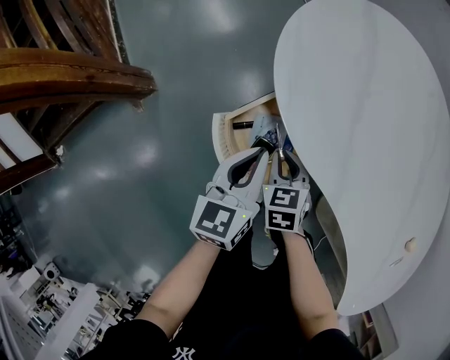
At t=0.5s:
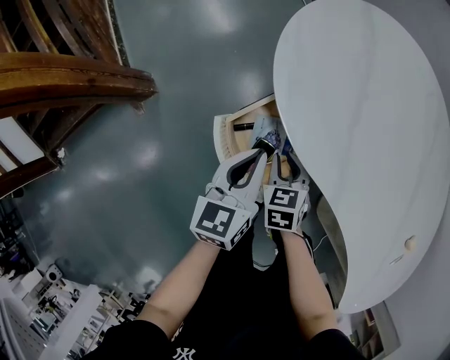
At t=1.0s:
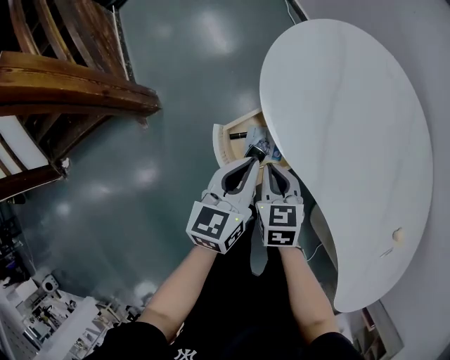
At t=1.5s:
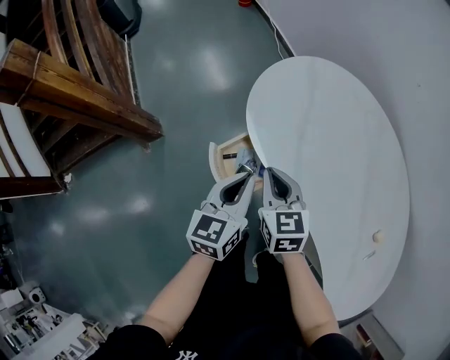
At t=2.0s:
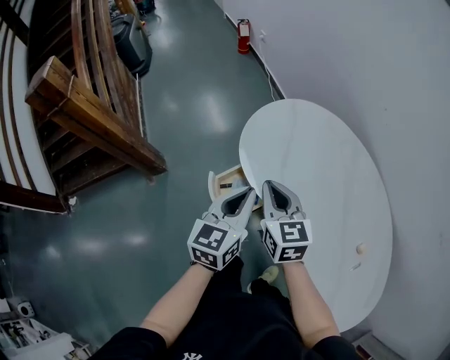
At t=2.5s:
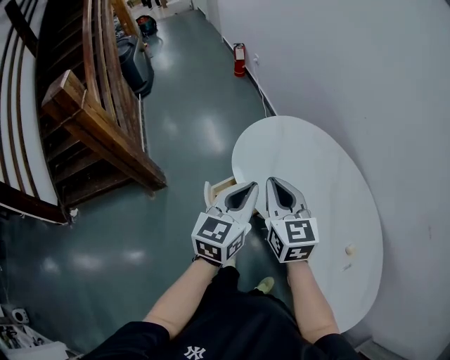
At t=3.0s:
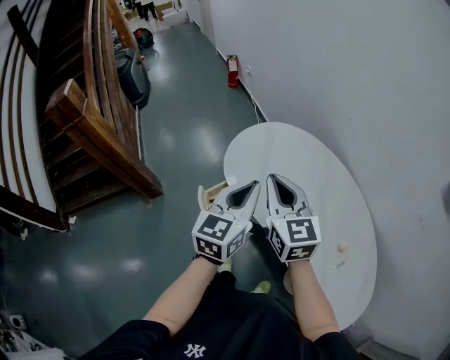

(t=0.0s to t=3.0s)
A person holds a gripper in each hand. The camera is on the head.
t=0.0s - t=1.5s: The left gripper goes some 15 cm upward. Meanwhile the right gripper shifts roughly 25 cm upward, and swivels some 20 degrees.
t=1.5s - t=3.0s: Both grippers move upward and to the right, roughly 25 cm. The right gripper rotates about 20 degrees.

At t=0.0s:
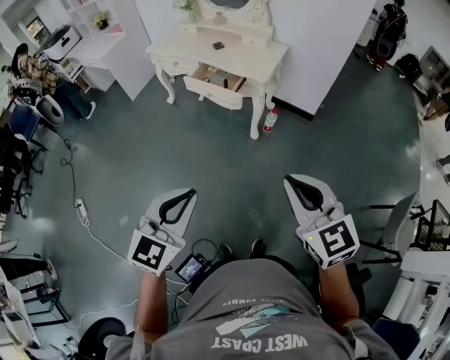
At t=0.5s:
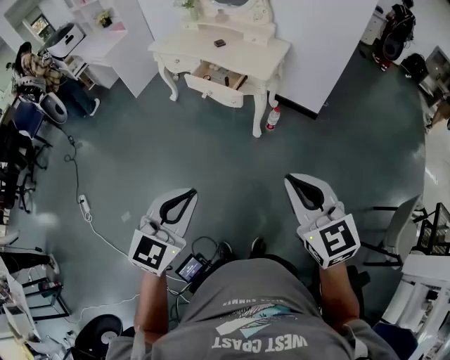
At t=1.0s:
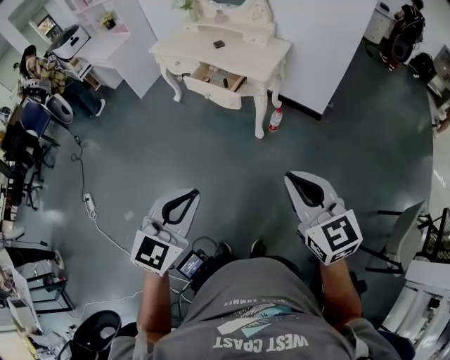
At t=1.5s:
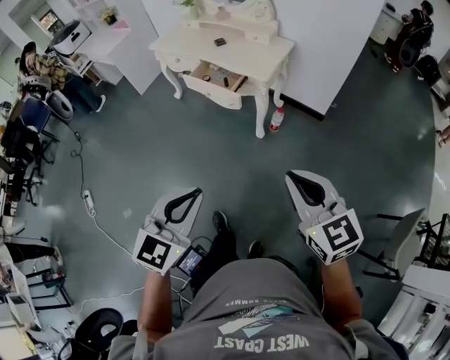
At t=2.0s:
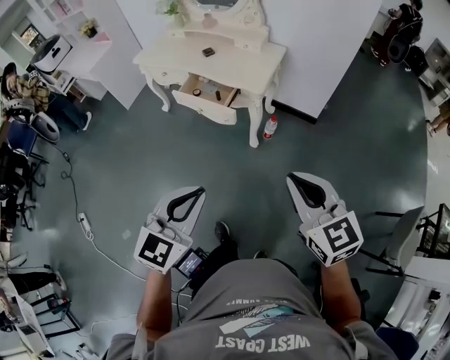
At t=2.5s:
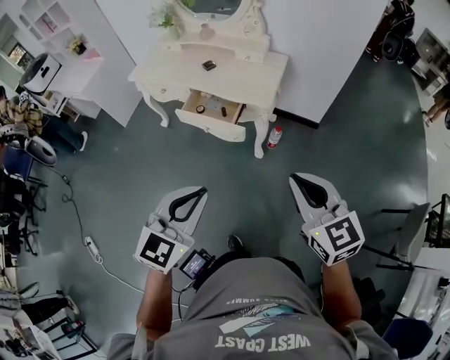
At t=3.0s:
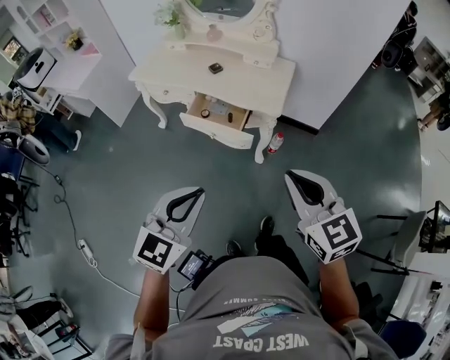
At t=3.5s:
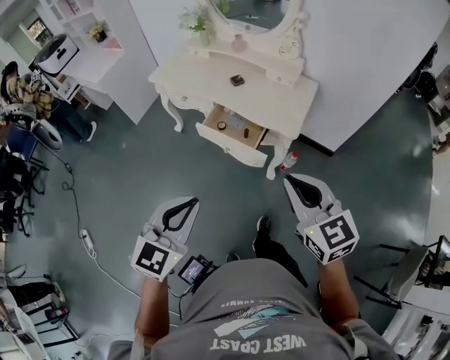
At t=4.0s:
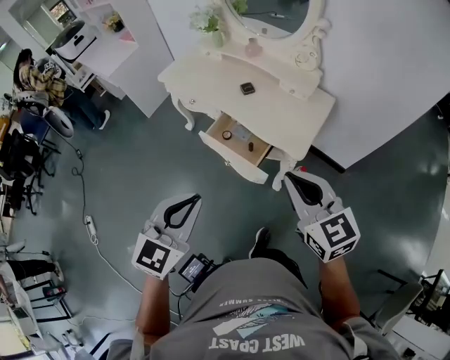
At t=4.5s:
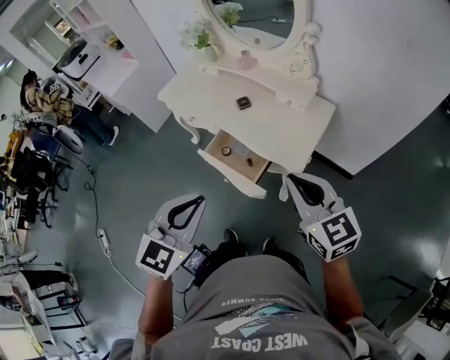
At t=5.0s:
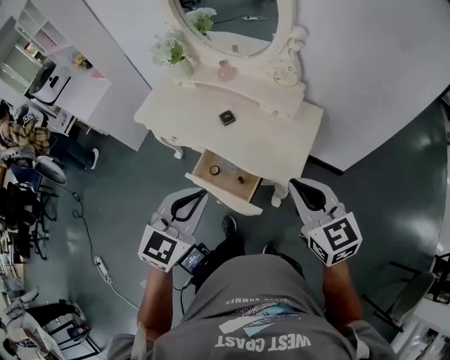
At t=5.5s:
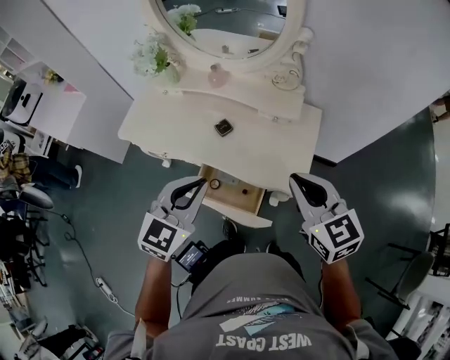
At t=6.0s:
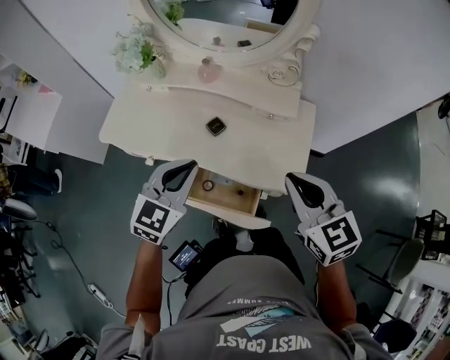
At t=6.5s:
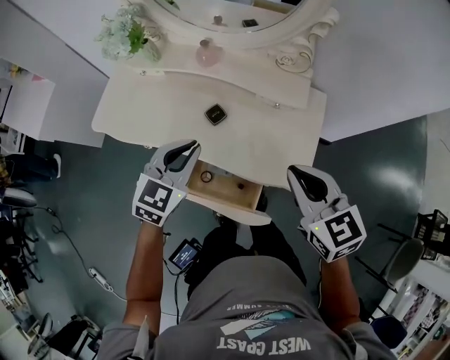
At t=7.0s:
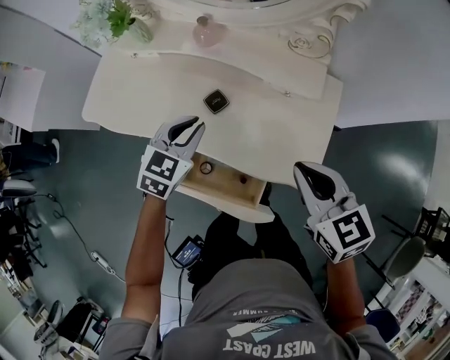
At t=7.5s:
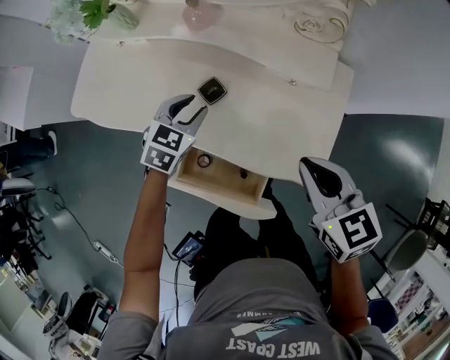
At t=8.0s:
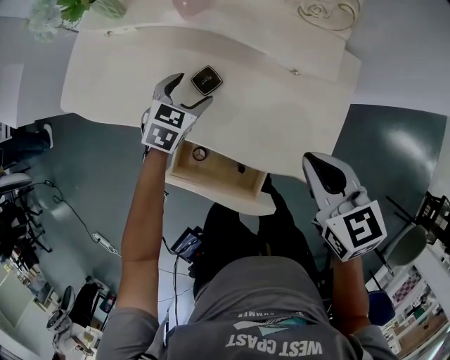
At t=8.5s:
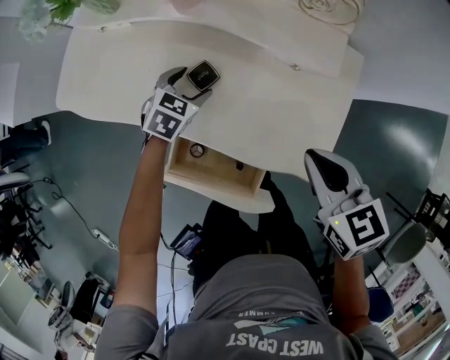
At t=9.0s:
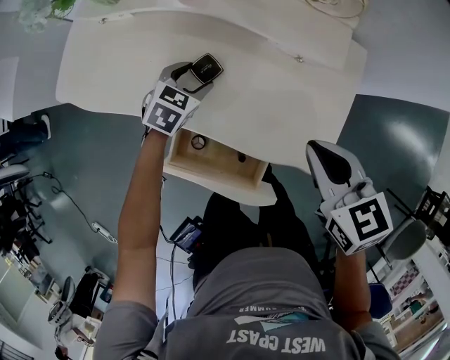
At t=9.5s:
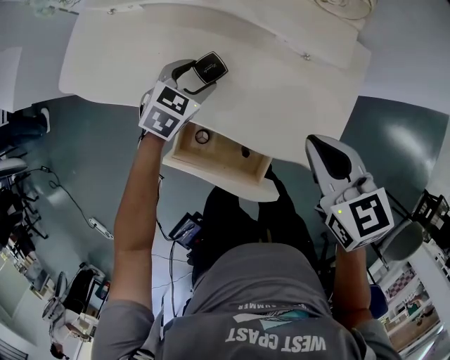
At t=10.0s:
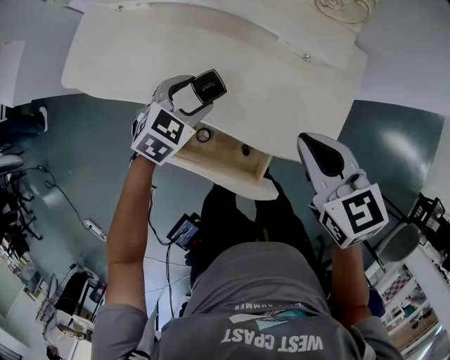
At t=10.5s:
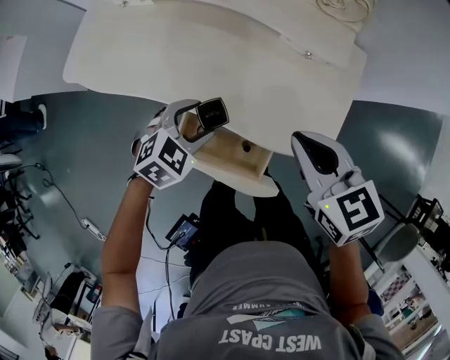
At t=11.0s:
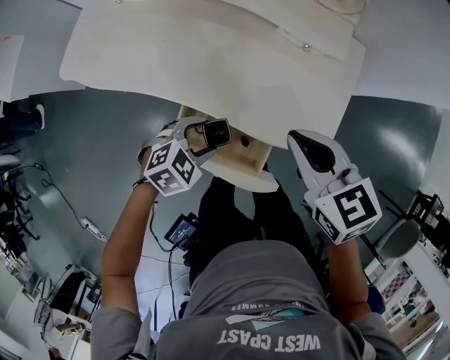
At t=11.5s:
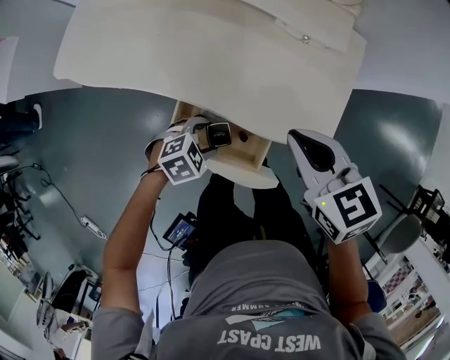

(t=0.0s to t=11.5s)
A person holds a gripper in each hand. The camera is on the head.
t=0.0s - t=2.0s: The right gripper travels forward by some 15 cm. The left gripper travels forward and to the right by some 20 cm.
t=2.0s - t=4.0s: Both grippers travel together forward, some 35 cm.
t=4.0s - t=6.0s: The right gripper is displaced forward by about 30 cm, and turns by roughly 20 degrees, while the left gripper shifts roughly 40 cm forward, and turns by roughly 20 degrees.
t=6.0s - t=7.5s: The left gripper is displaced downward and forward by approximately 30 cm, changes its angle by some 20 degrees, and opens its fingers; the right gripper travels downward and forward by roughly 20 cm.
t=7.5s - t=9.5s: The left gripper moves downward, approximately 5 cm, and opens its fingers.
t=9.5s - t=11.5s: The left gripper ends up about 25 cm from where it was, and rotates approximately 30 degrees. The right gripper moves about 5 cm.

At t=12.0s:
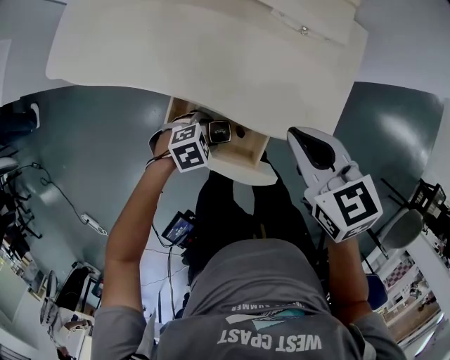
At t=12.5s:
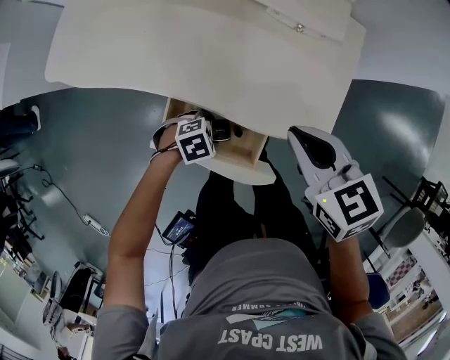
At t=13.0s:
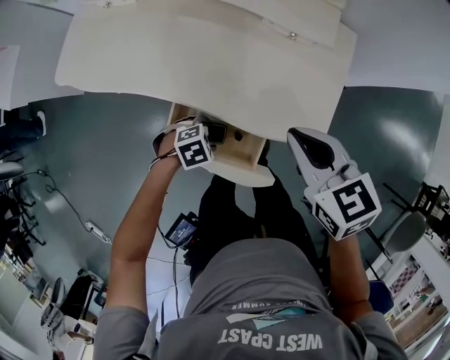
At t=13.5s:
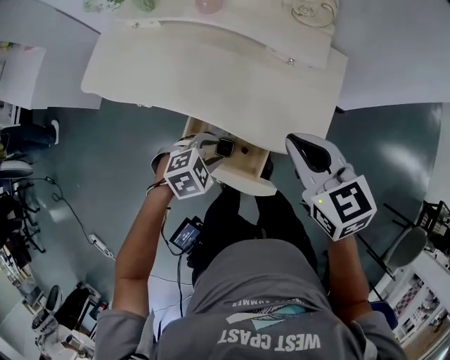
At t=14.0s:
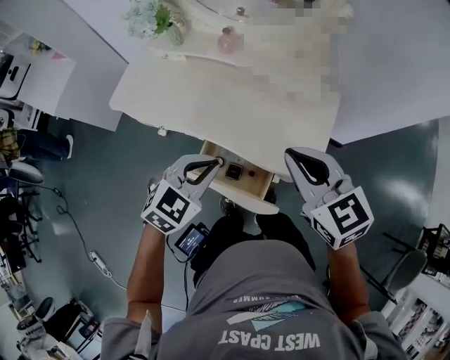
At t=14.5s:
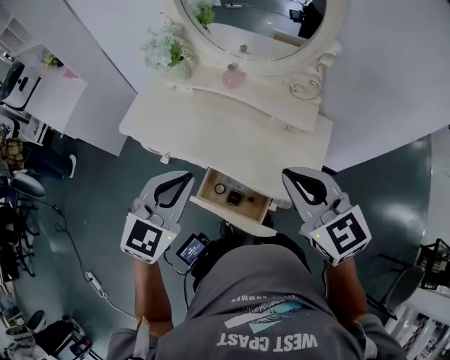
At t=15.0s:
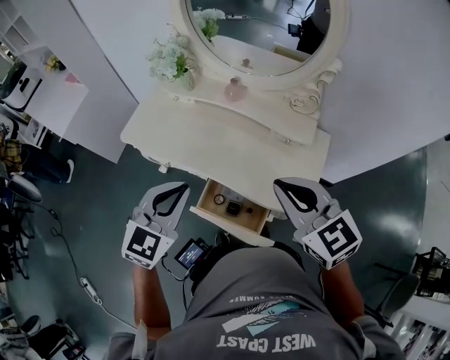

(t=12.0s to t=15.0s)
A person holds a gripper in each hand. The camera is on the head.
t=12.0s - t=13.5s: The grippers both shift upward by some 15 cm.
t=13.5s - t=15.0s: The left gripper is displaced upward by about 30 cm, tips its fingers upward by some 40 degrees, and closes its fingers; the right gripper is displaced upward and to the left by roughly 20 cm.

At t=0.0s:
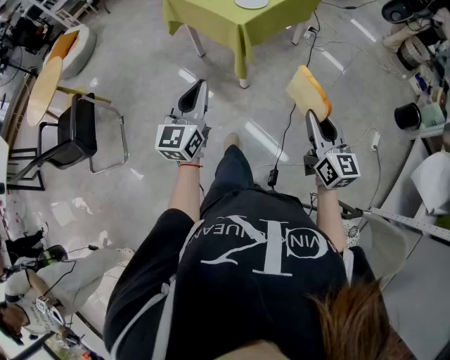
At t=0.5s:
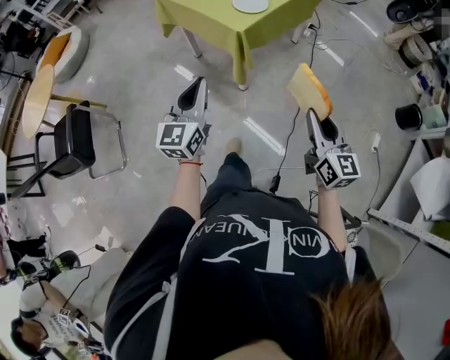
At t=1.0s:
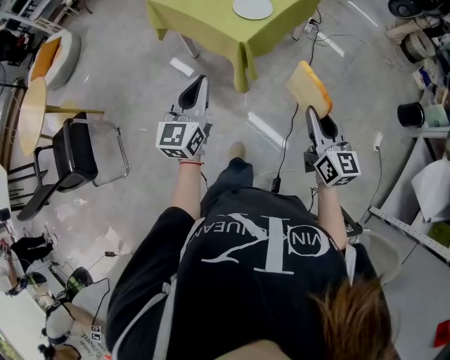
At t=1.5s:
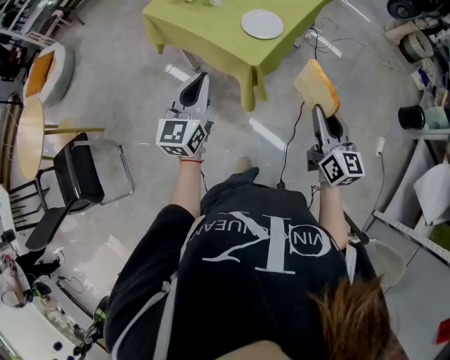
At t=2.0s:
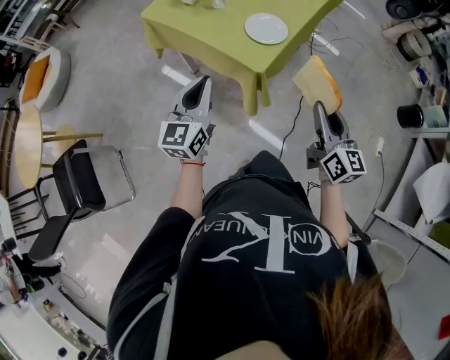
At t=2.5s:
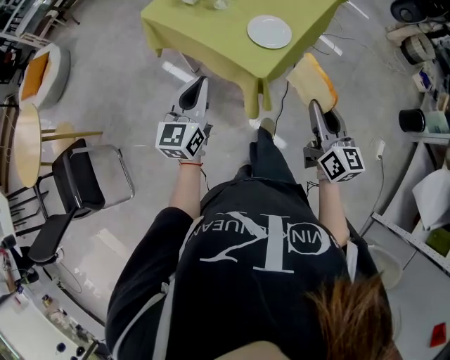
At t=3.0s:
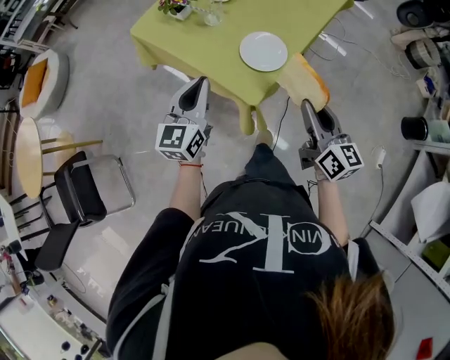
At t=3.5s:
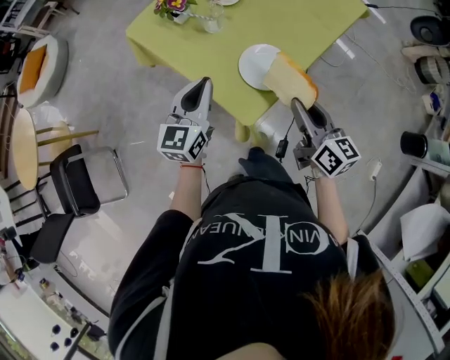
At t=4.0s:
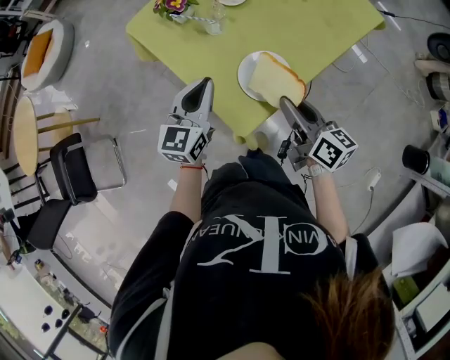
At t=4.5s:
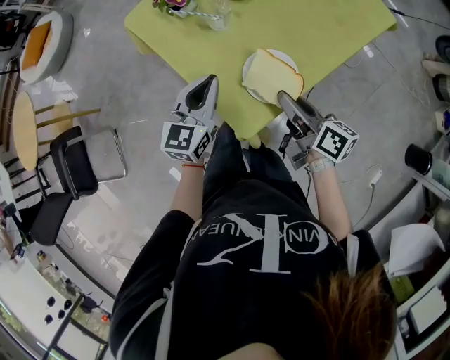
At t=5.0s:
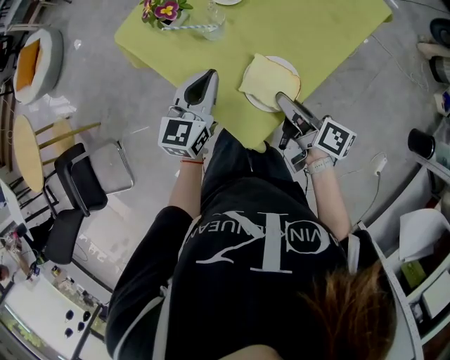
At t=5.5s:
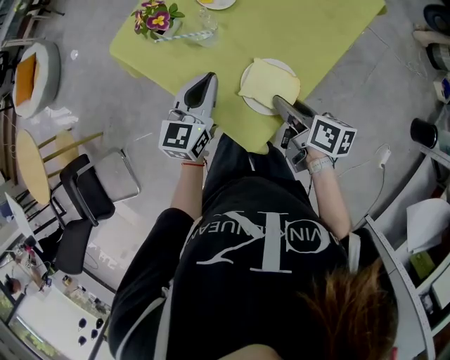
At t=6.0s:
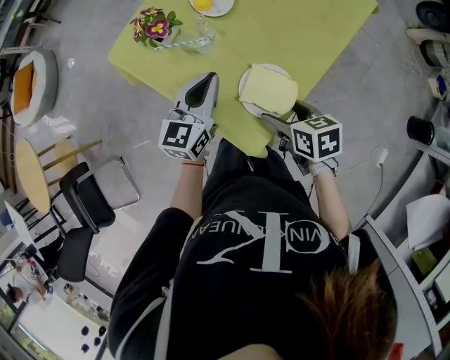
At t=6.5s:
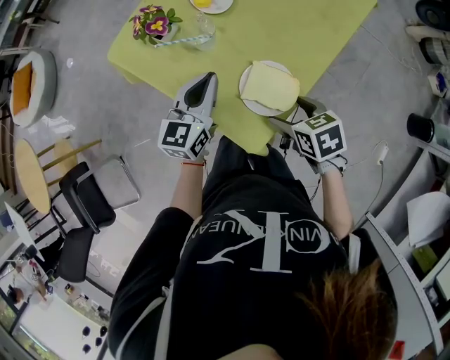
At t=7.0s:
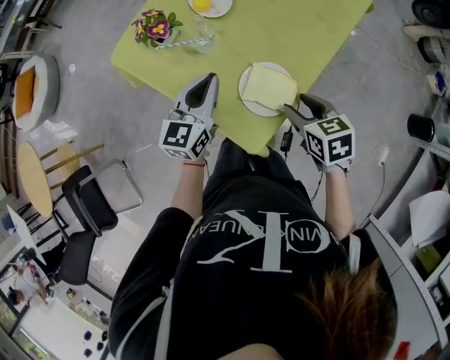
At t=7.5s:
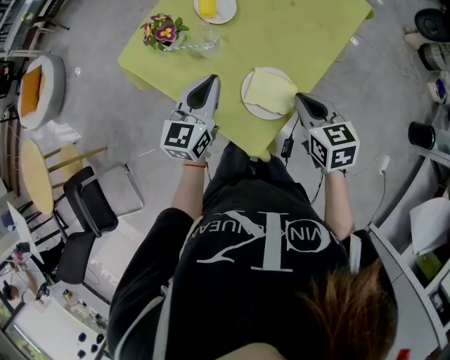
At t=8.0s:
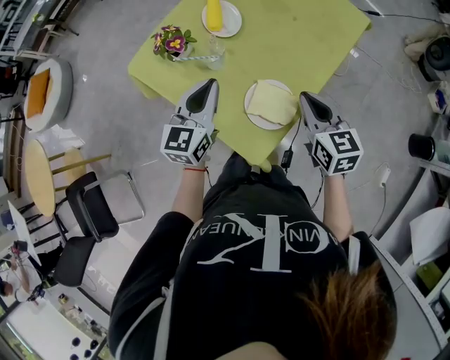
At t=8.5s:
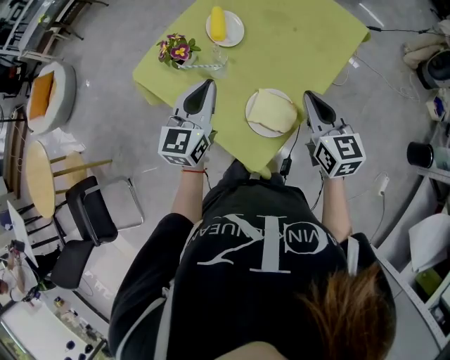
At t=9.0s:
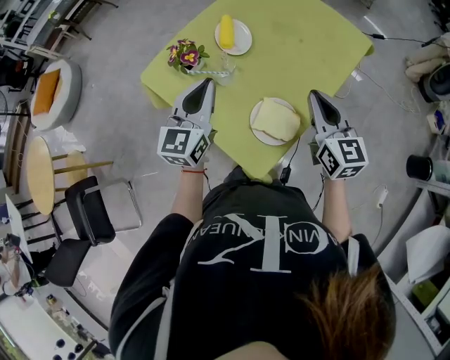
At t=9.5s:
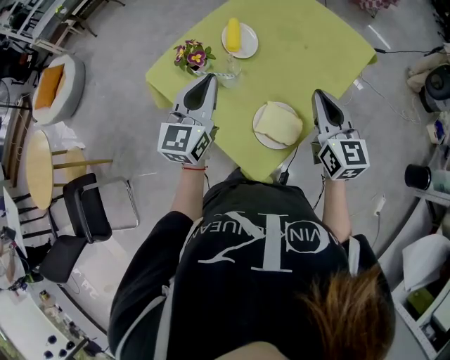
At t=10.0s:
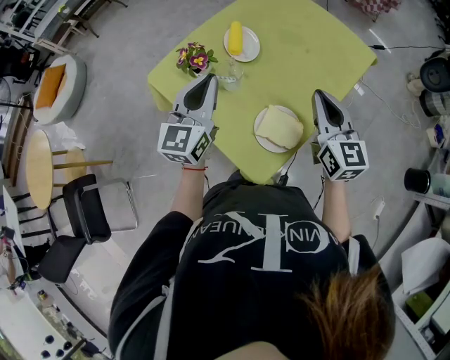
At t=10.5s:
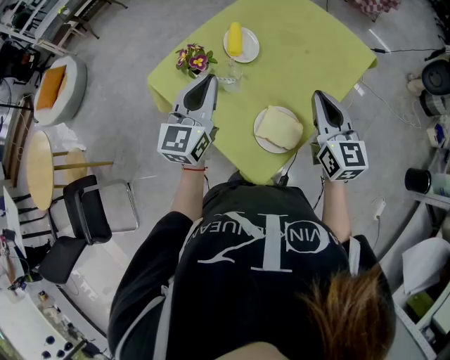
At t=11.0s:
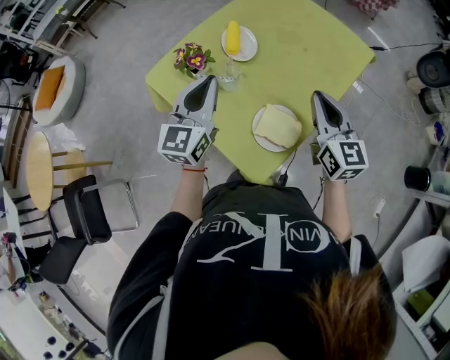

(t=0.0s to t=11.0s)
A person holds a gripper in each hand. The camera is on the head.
t=0.0s - t=2.0s: Both grippers move forward, roughly 30 cm.
t=2.0s - t=3.5s: The two grippers go roughly 20 cm forward. The right gripper turns by some 20 degrees.
t=3.5s - t=5.5s: The left gripper travels forward by some 10 cm. The right gripper travels forward and downward by approximately 15 cm, and rotates roughly 40 degrees.
t=5.5s - t=7.5s: The right gripper is displaced upward by about 5 cm, twists approximately 40 degrees counterclockwise, seen from behind, and closes its fingers.
t=7.5s - t=9.0s: The right gripper travels upward and forward by about 10 cm, and turns by roughly 30 degrees, while the left gripper is displaced upward by about 10 cm.
t=9.0s - t=11.0s: The grippers make only small movements.
